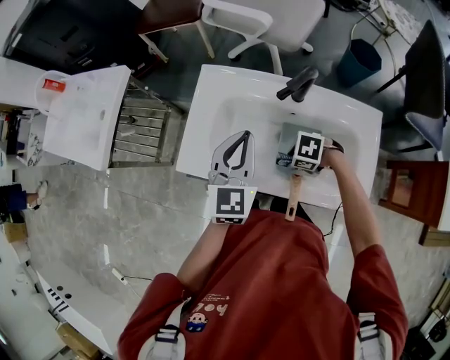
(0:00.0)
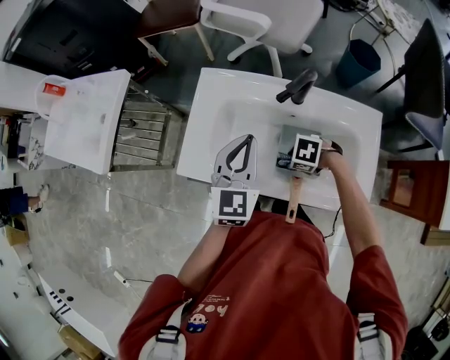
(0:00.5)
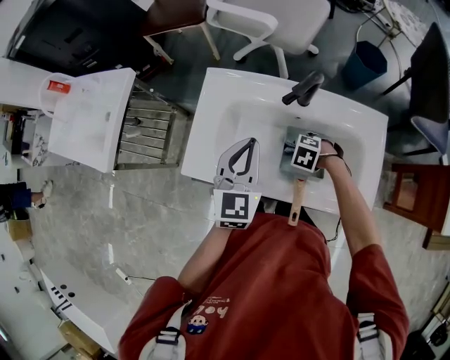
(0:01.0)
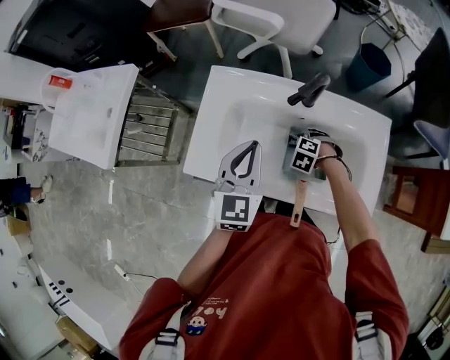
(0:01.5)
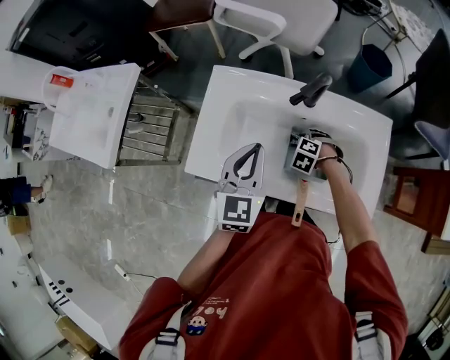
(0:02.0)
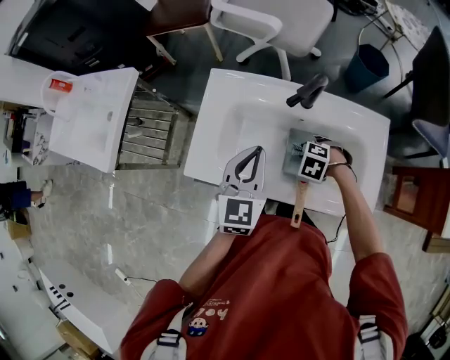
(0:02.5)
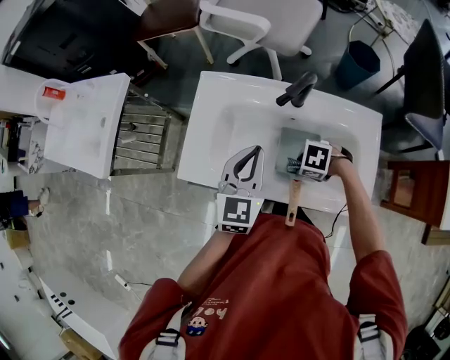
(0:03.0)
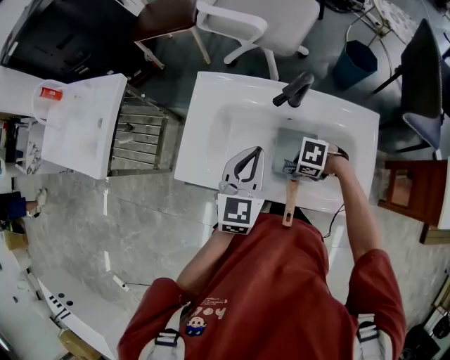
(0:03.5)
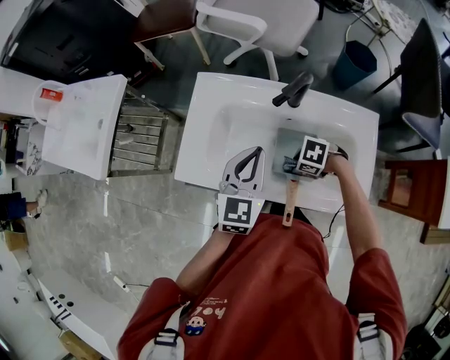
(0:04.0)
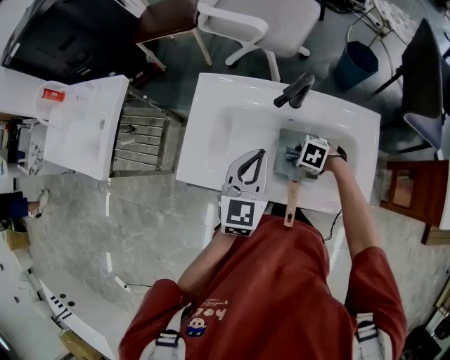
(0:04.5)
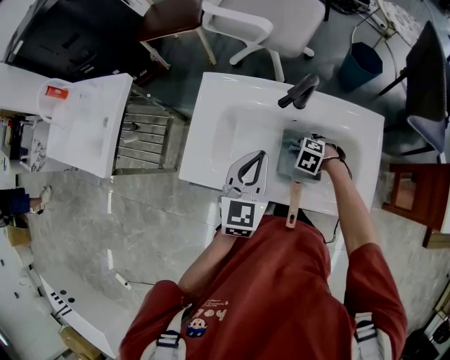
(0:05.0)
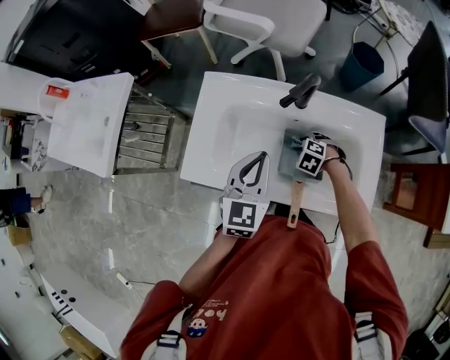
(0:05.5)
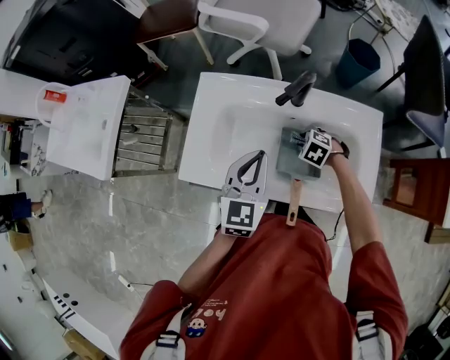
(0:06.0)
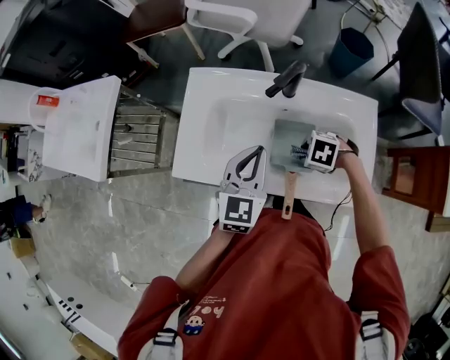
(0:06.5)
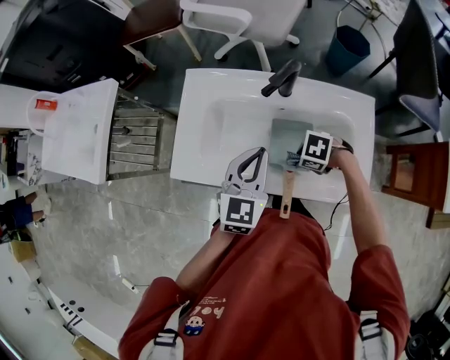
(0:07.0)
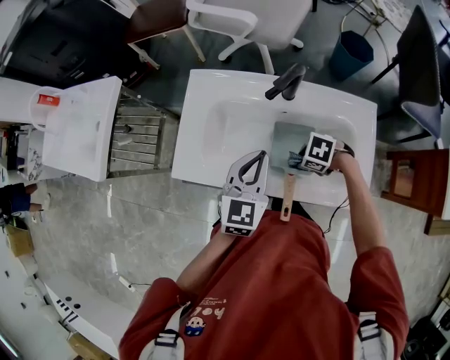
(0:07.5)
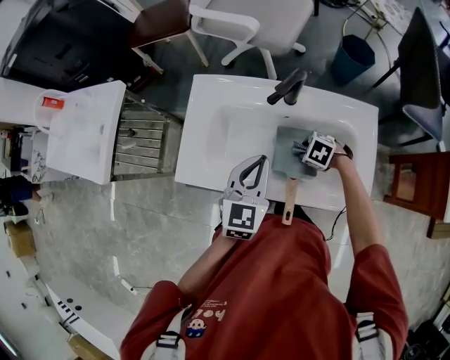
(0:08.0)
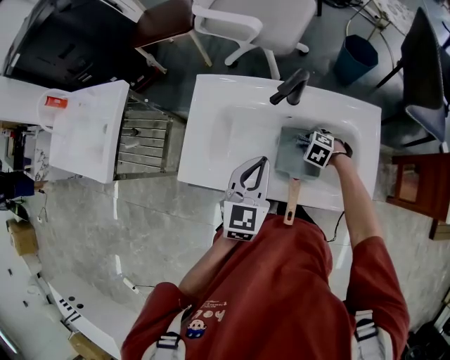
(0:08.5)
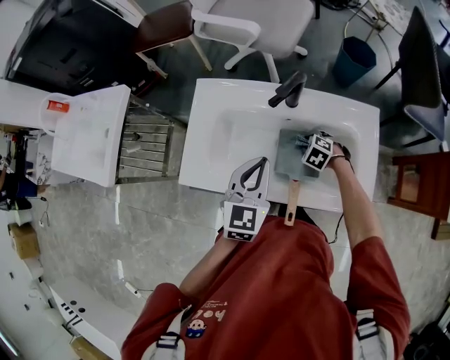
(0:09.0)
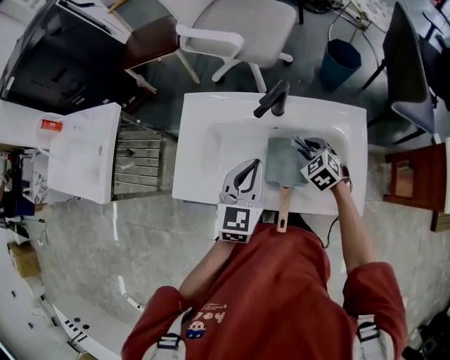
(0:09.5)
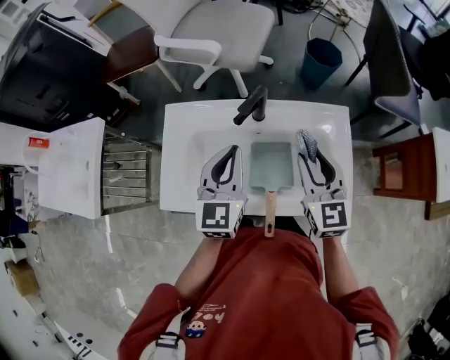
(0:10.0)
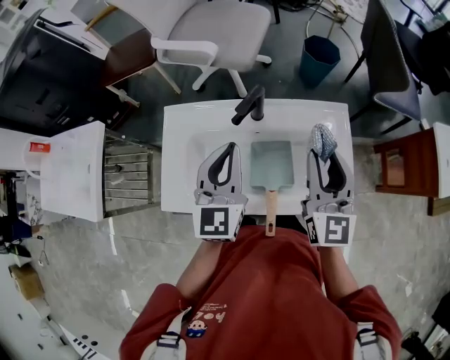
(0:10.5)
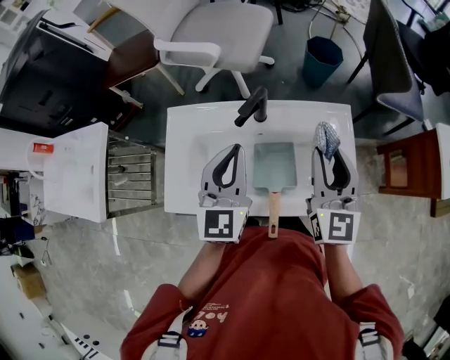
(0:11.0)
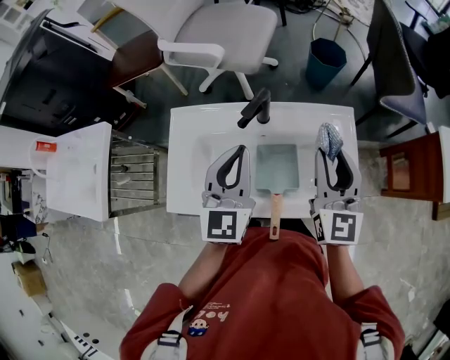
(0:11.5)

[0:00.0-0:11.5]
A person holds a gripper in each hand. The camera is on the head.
0:00.0 to 0:02.0: The right gripper ends up roughly 10 cm from where it was, and changes its angle by about 30 degrees.
0:02.0 to 0:04.0: The right gripper changes place by some 10 cm, and swivels about 30 degrees.
0:04.0 to 0:06.0: The right gripper changes place by about 10 cm, and rotates about 30 degrees.
0:06.0 to 0:07.5: The right gripper moves some 10 cm, and turns by about 20 degrees.
0:07.5 to 0:09.5: The right gripper shifts by some 10 cm, and turns by some 50 degrees.
0:09.5 to 0:11.5: The left gripper is displaced upward by approximately 10 cm. The right gripper travels upward by approximately 25 cm, and tips its fingers upward by some 50 degrees.

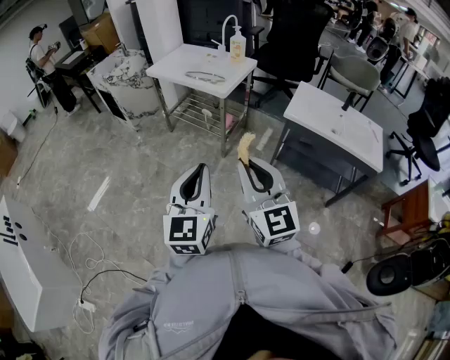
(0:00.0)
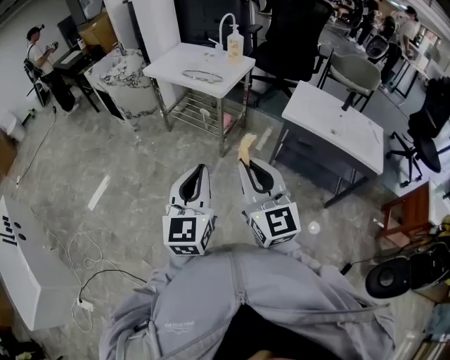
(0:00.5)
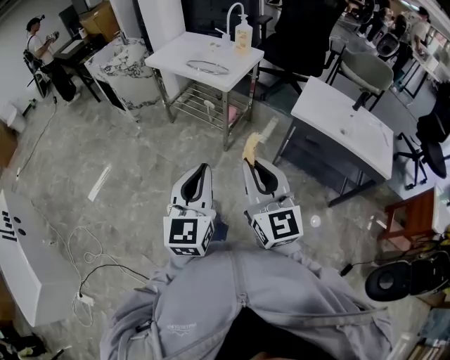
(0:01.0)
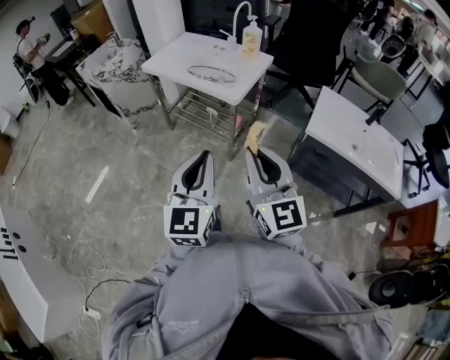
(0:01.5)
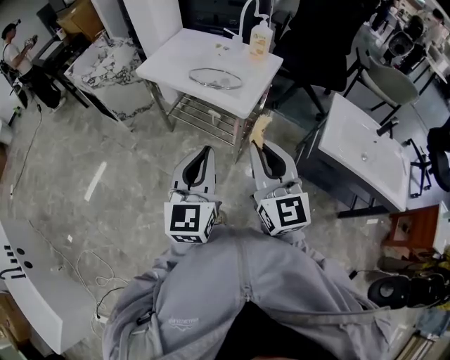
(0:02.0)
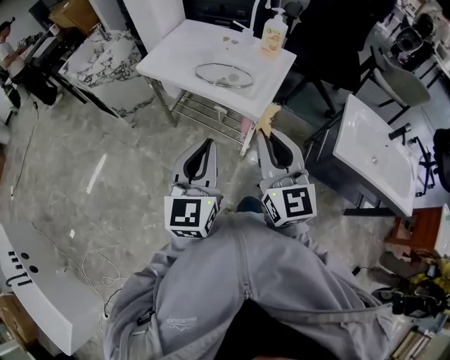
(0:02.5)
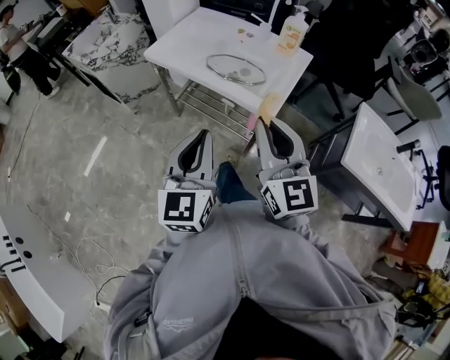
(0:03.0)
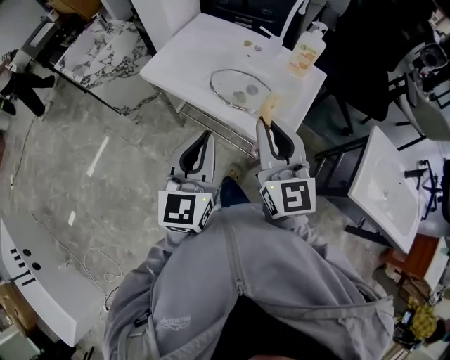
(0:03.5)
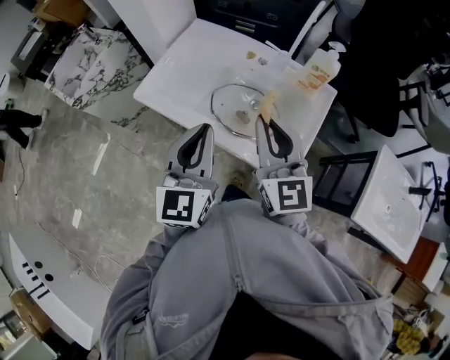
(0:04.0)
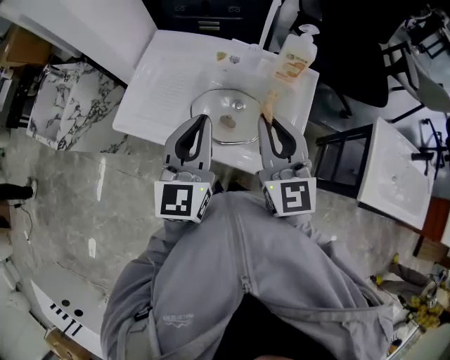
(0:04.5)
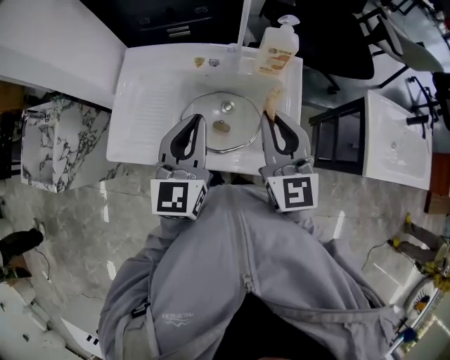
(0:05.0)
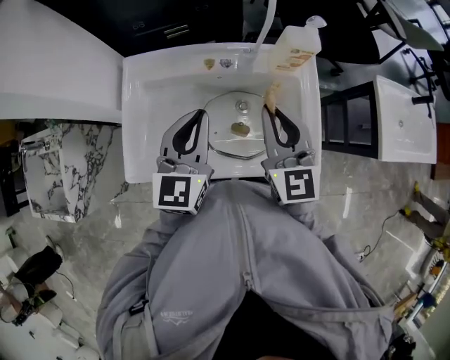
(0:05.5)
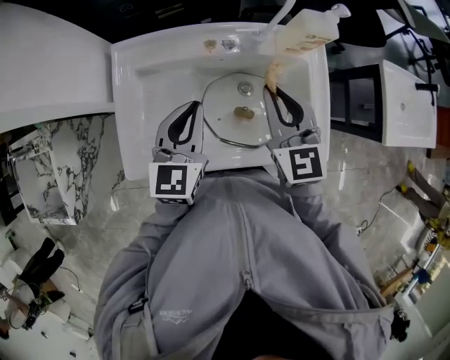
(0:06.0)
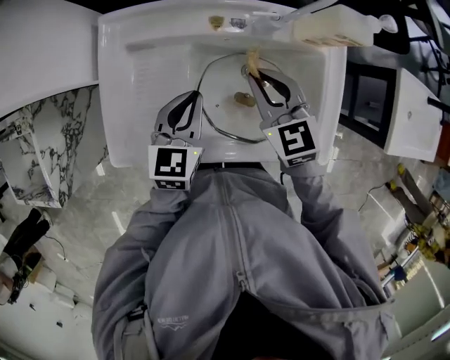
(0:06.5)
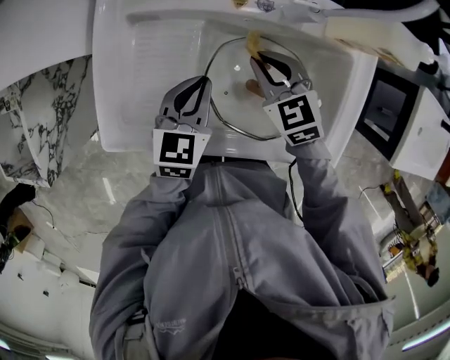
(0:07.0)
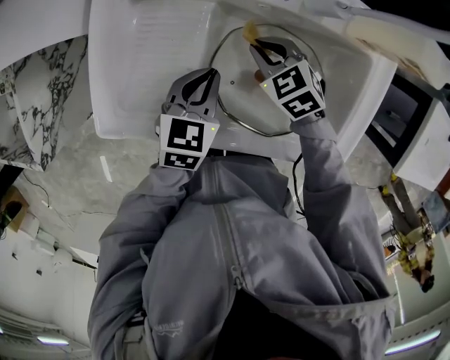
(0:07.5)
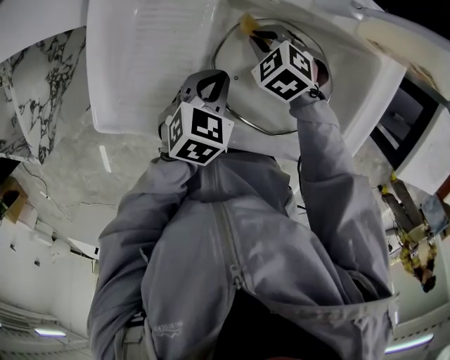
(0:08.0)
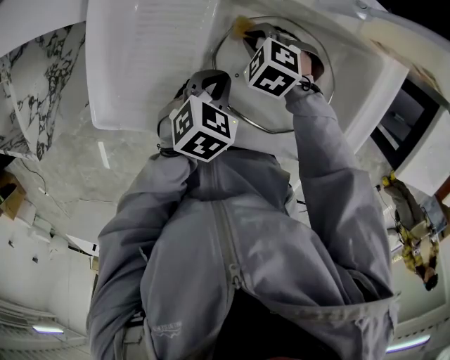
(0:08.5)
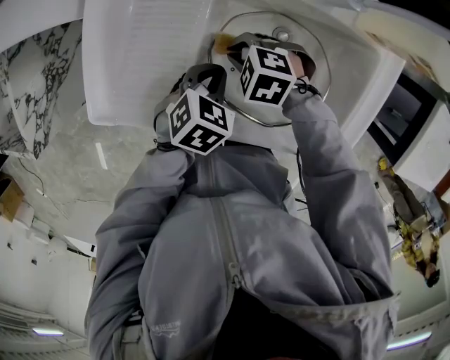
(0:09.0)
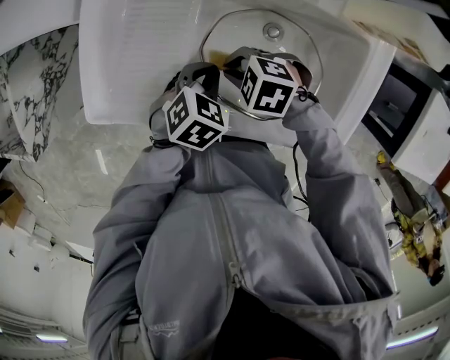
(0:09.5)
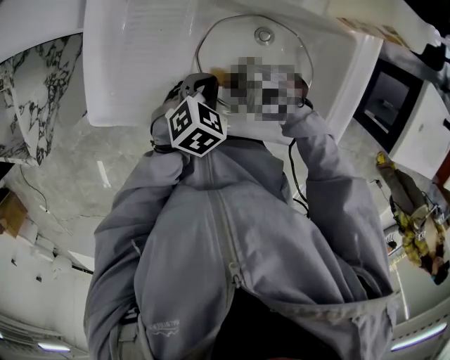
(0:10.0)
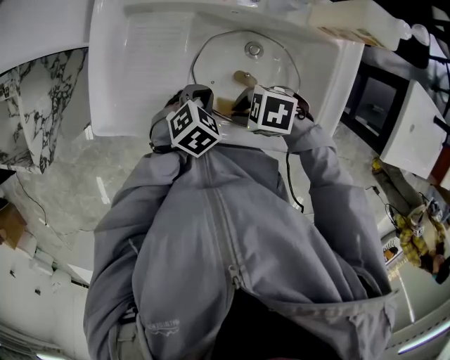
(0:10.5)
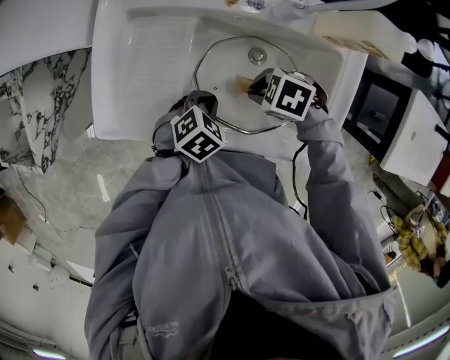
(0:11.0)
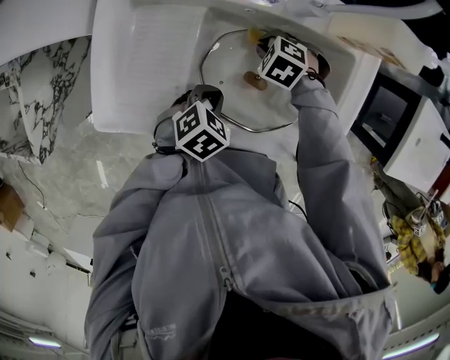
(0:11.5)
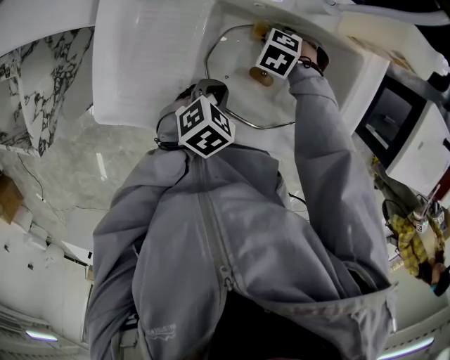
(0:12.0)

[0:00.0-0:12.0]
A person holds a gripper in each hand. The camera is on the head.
0:00.0 to 0:02.0: Both grippers travel together forward, some 40 cm.
0:02.0 to 0:04.0: Both grippers are carried forward, roughly 50 cm.
0:04.0 to 0:06.0: The right gripper moves some 20 cm, and swivels about 30 degrees. Meanwhile the left gripper ends up approximately 25 cm from where it was, and turns by approximately 40 degrees.
0:06.0 to 0:08.0: Both grippers move downward, about 25 cm. The left gripper tips its fingers downward by roughly 40 degrees. Meanwhile the right gripper points its fingers roughly 50 degrees further downward.
0:08.0 to 0:10.0: The right gripper changes place by about 15 cm, and turns by approximately 30 degrees.
0:10.0 to 0:12.0: The right gripper changes place by some 20 cm, and rotates approximately 30 degrees.

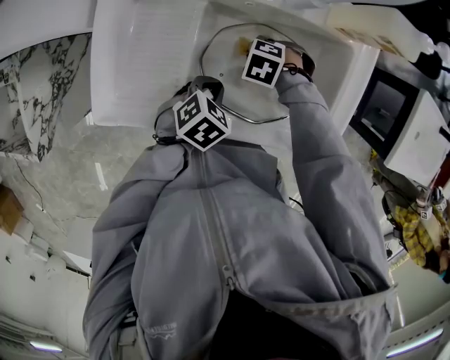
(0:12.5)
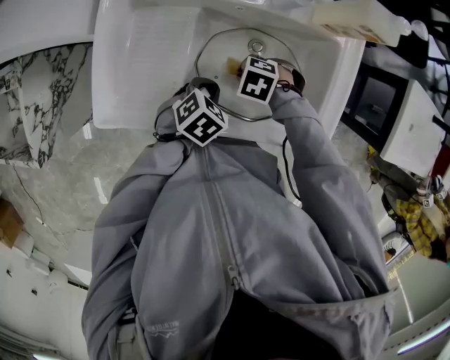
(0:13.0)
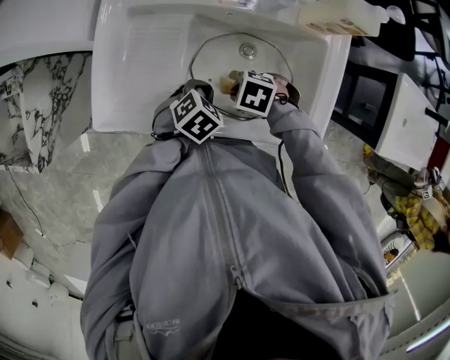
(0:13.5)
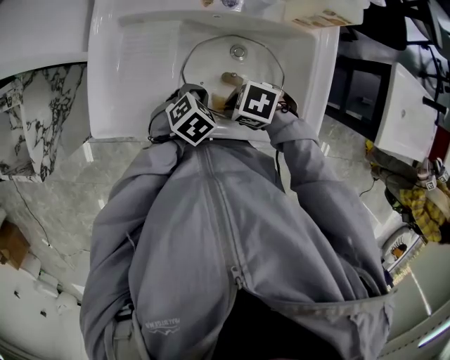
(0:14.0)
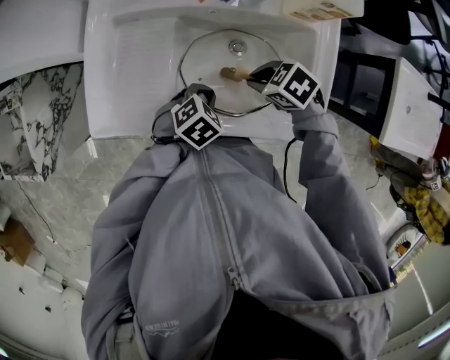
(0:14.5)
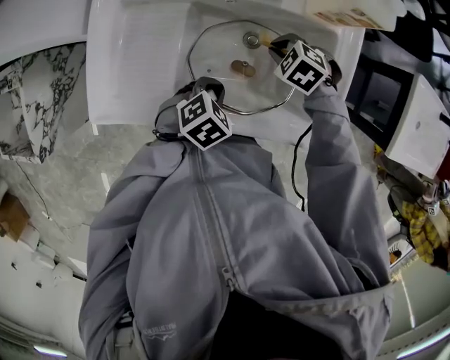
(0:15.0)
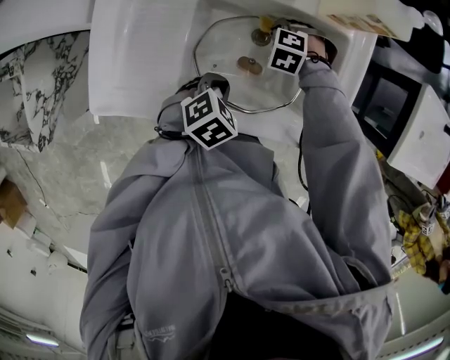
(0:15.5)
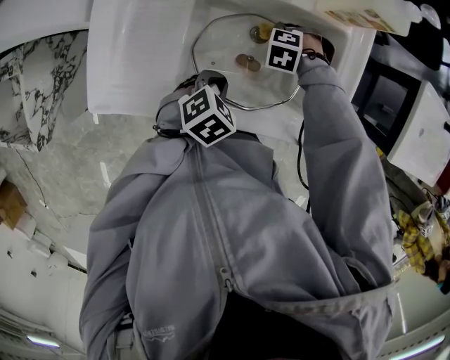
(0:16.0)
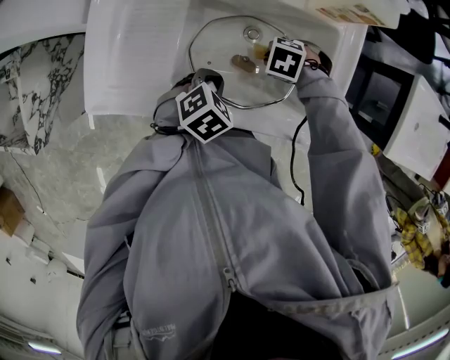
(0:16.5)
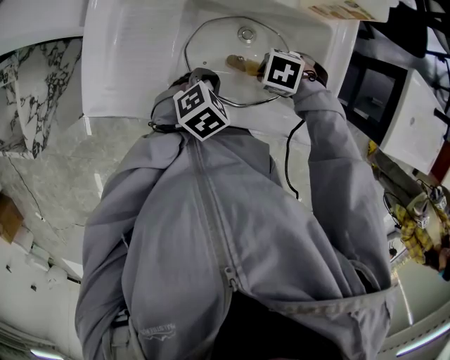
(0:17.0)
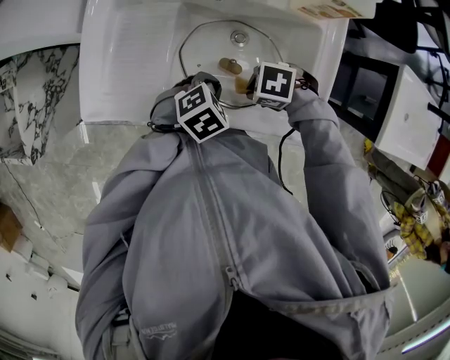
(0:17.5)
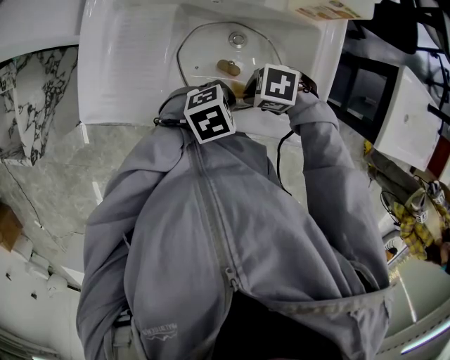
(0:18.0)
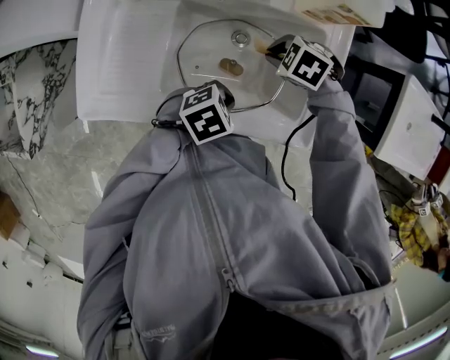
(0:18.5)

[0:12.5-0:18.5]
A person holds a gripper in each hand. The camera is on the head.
0:12.5 to 0:14.5: The right gripper travels upward by approximately 10 cm, and swivels approximately 30 degrees.
0:14.5 to 0:16.5: The right gripper heads downward, covering approximately 10 cm, and turns by approximately 30 degrees.
0:16.5 to 0:18.5: The right gripper is displaced upward by about 5 cm, while the left gripper shifts by approximately 10 cm, and rotates about 20 degrees.
